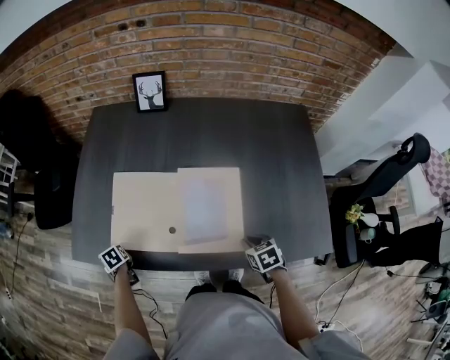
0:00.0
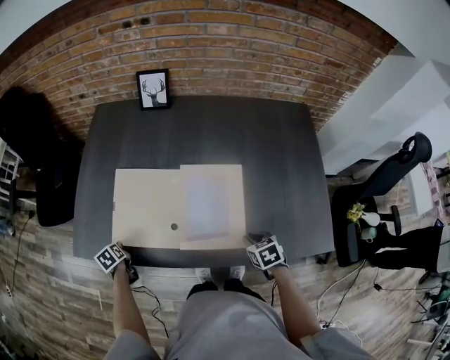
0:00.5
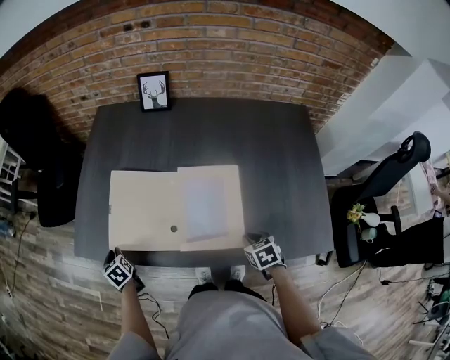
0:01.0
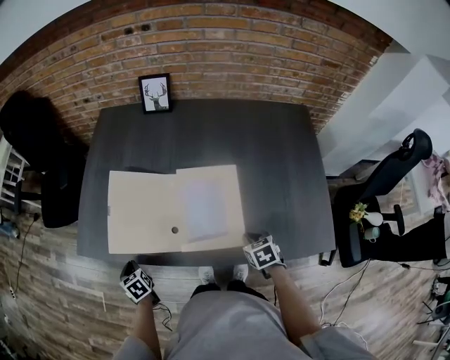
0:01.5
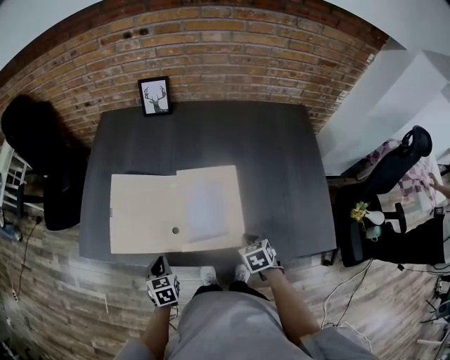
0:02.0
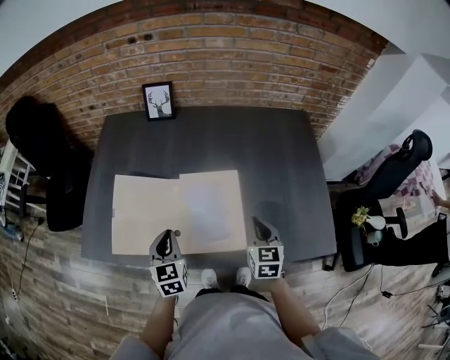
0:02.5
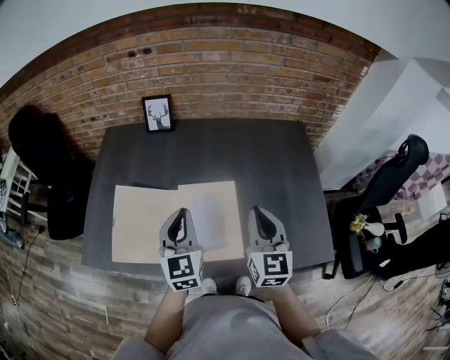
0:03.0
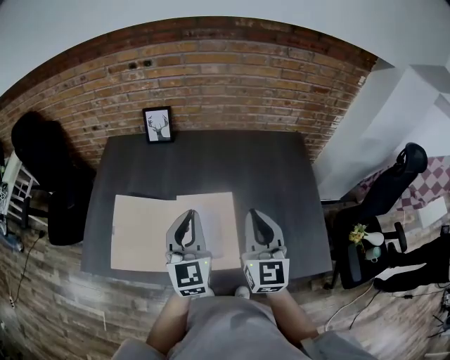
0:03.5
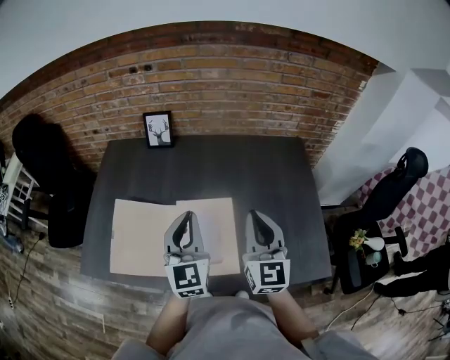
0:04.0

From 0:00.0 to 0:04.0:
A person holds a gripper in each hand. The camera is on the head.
From 0:00.0 to 0:02.0: The left gripper is displaced to the right, backward and upward by approximately 20 cm, and swivels about 30 degrees.
From 0:02.0 to 0:04.0: The right gripper heads upward, covering approximately 30 cm, and tips its fingers upward by about 60 degrees. The left gripper heads upward, to the right and forward, covering about 40 cm, and tilts its fingers some 50 degrees upward.

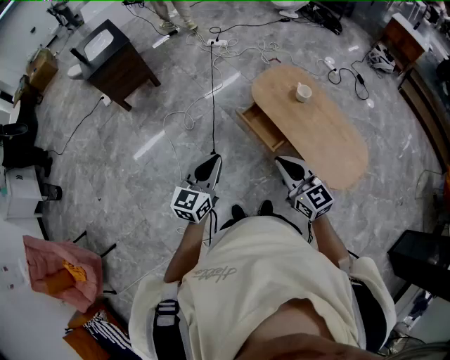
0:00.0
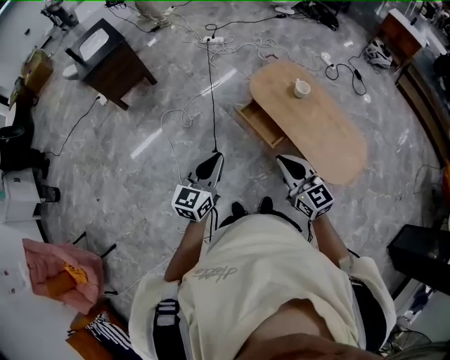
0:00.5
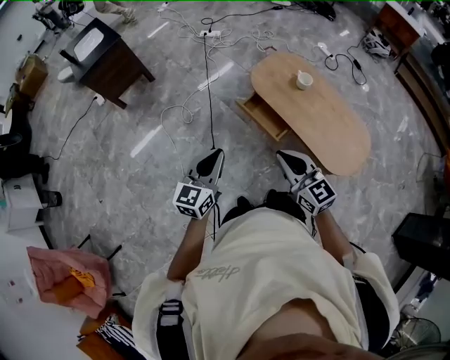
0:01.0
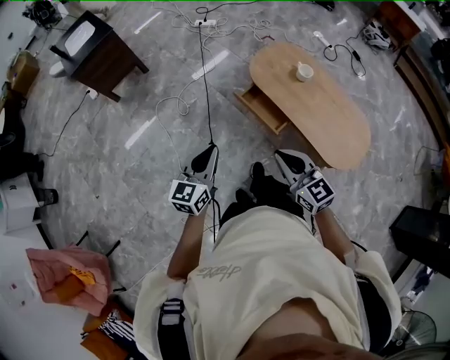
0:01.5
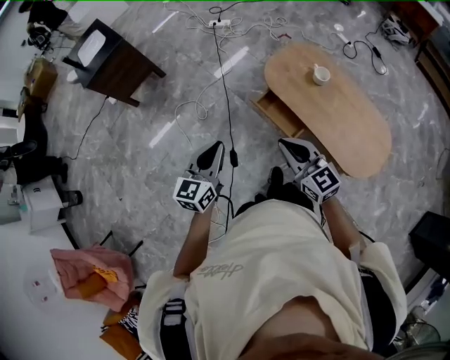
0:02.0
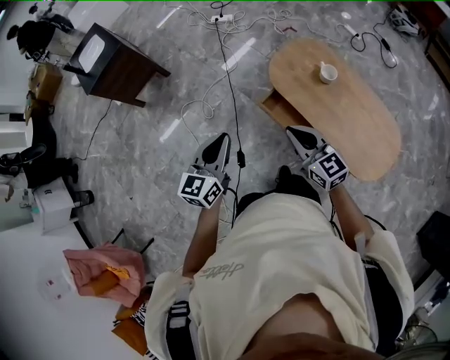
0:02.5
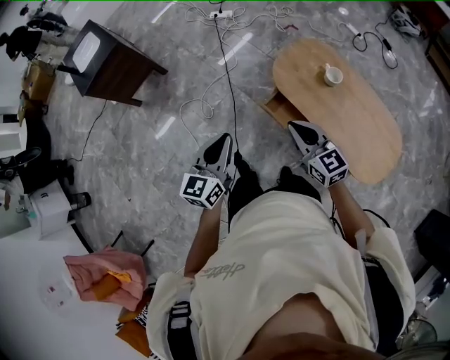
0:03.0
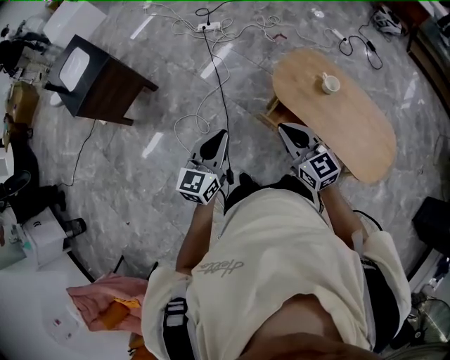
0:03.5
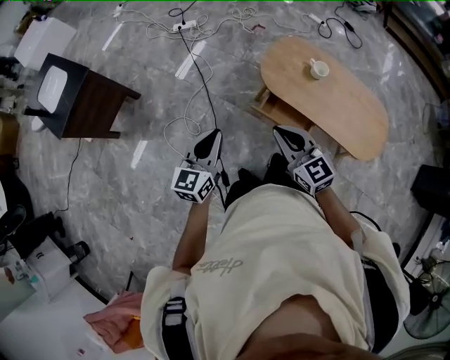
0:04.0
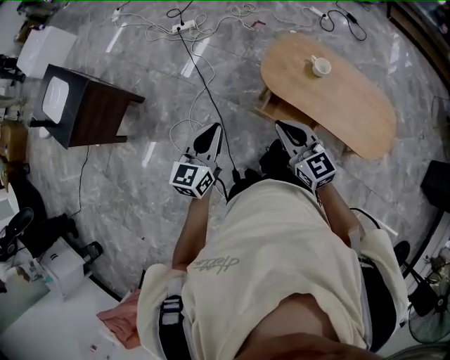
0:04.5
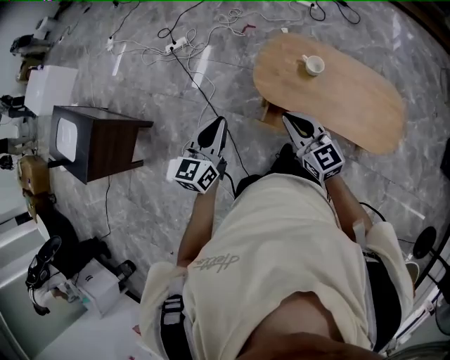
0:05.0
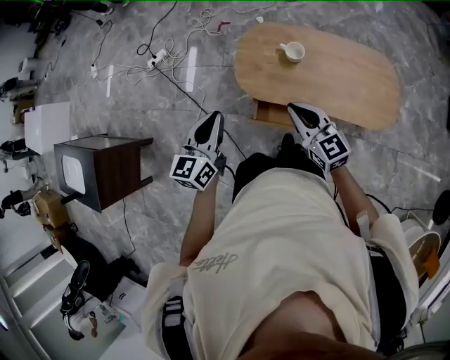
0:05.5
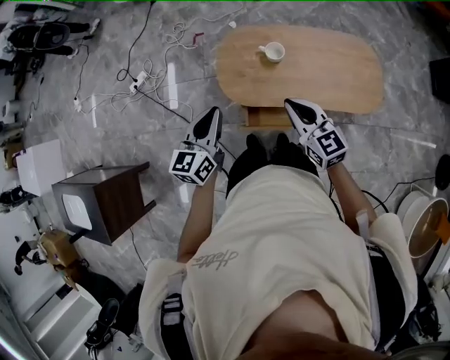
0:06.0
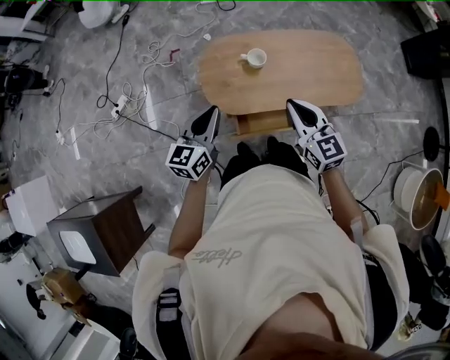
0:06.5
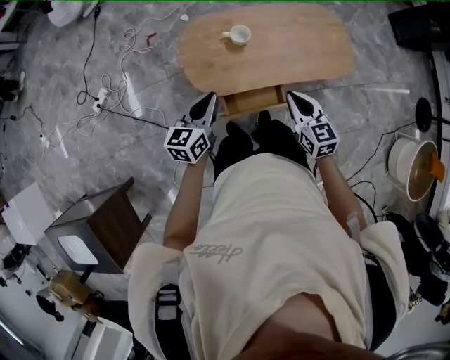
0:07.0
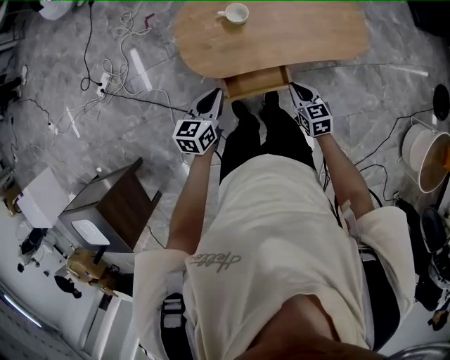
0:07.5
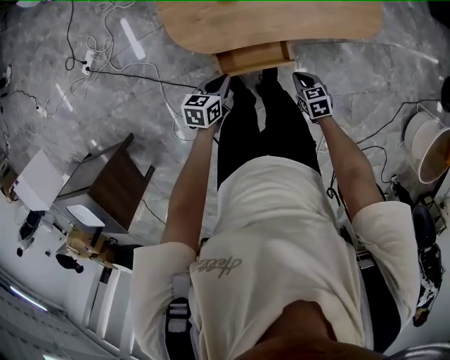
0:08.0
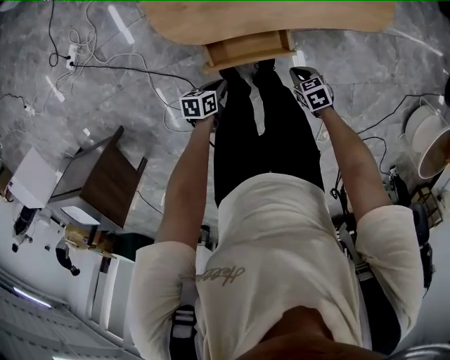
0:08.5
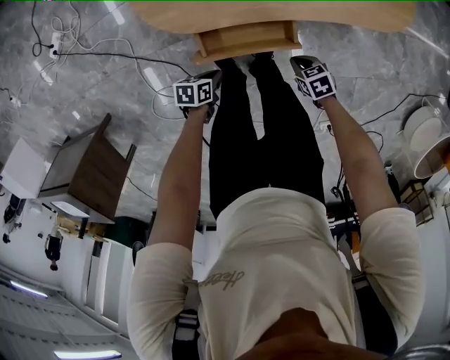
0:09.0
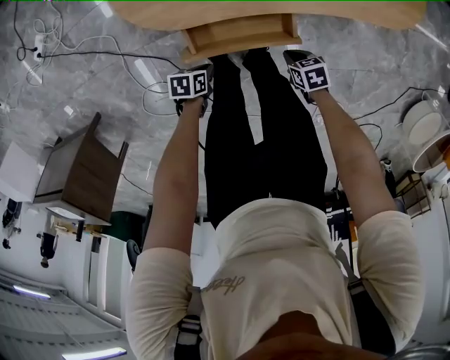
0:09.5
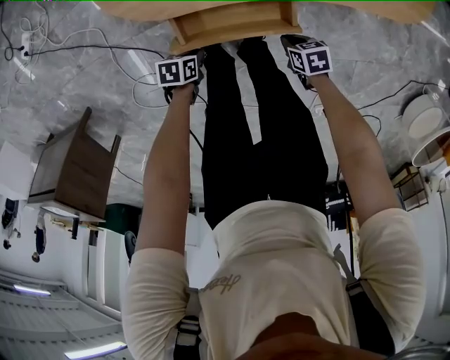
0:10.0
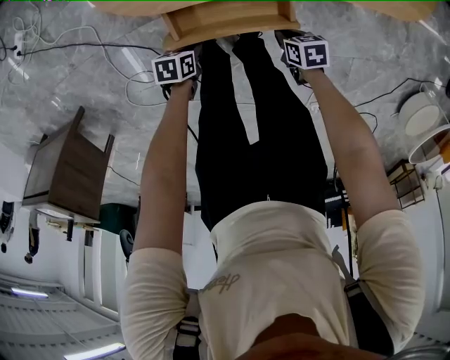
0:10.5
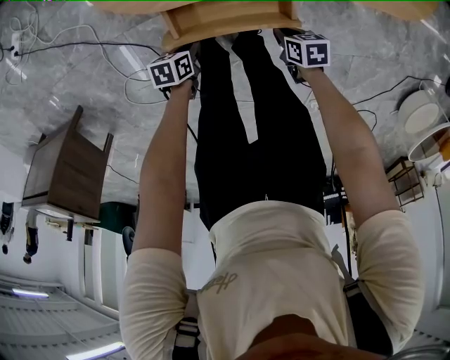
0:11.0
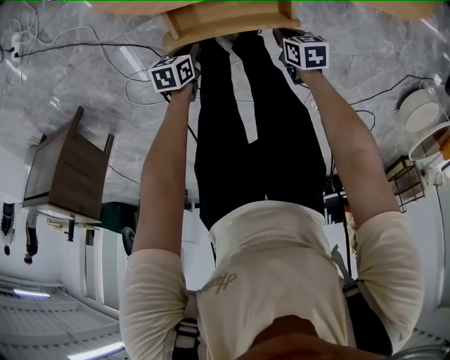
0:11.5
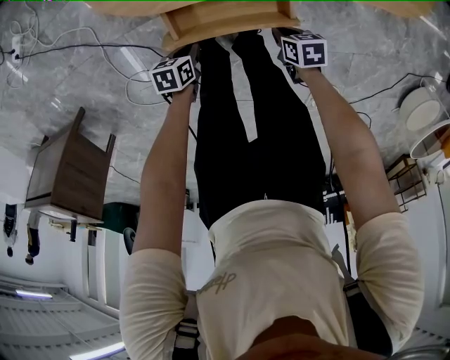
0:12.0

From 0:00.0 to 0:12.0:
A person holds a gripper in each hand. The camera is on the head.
From 0:00.0 to 0:02.0: The two grippers go about 15 cm forward.
From 0:02.0 to 0:04.0: The two grippers go roughly 30 cm forward and to the left.
From 0:04.0 to 0:06.0: The left gripper moves approximately 40 cm, and turns by roughly 30 degrees. The right gripper shifts by some 35 cm, and turns by some 30 degrees.
From 0:06.0 to 0:08.0: Both grippers travel together downward, some 40 cm. The left gripper angles its fingers downward, by approximately 30 degrees, while the right gripper tilts its fingers approximately 40 degrees downward.
From 0:08.0 to 0:10.0: The grippers both shift downward by roughly 35 cm. The left gripper rotates approximately 30 degrees. Meanwhile the right gripper changes its angle by roughly 20 degrees.
From 0:10.0 to 0:12.0: The grippers make only small movements.

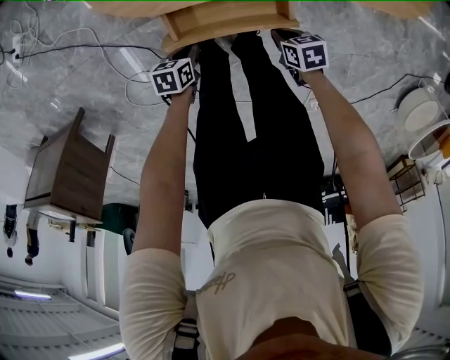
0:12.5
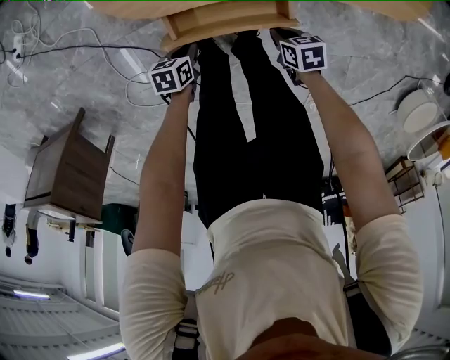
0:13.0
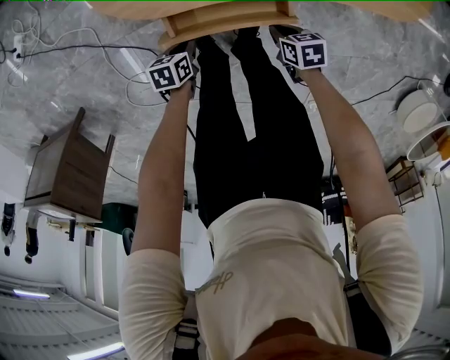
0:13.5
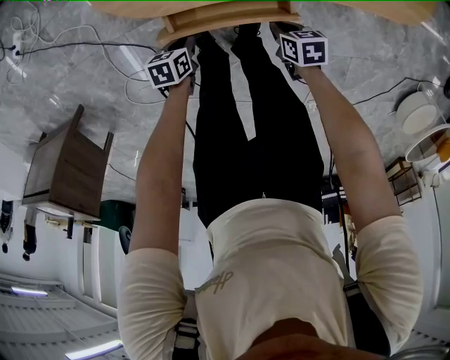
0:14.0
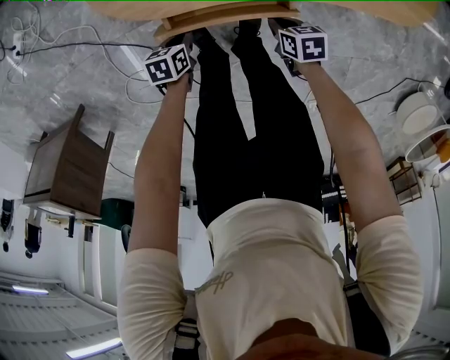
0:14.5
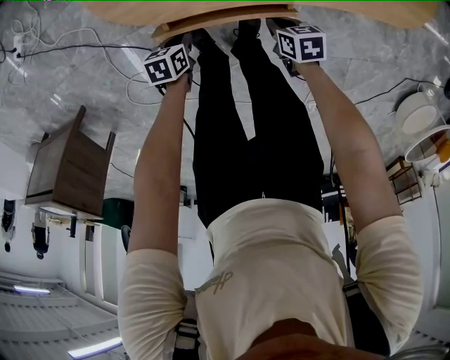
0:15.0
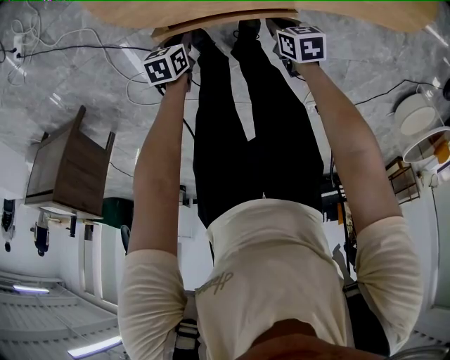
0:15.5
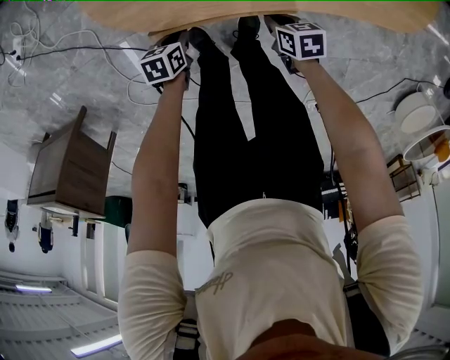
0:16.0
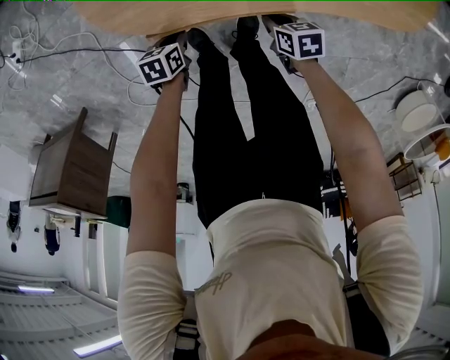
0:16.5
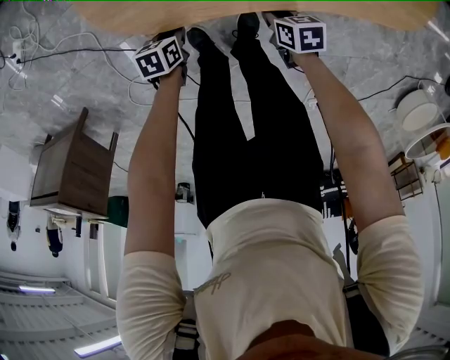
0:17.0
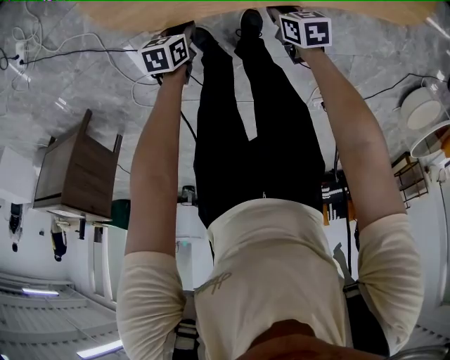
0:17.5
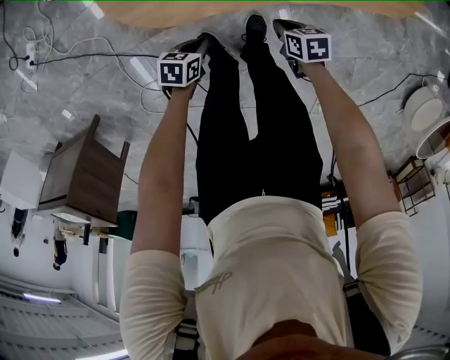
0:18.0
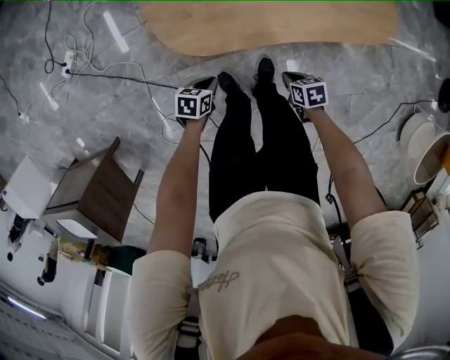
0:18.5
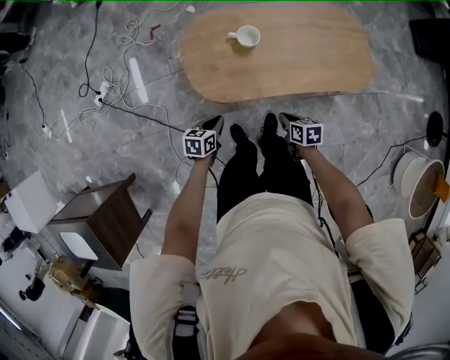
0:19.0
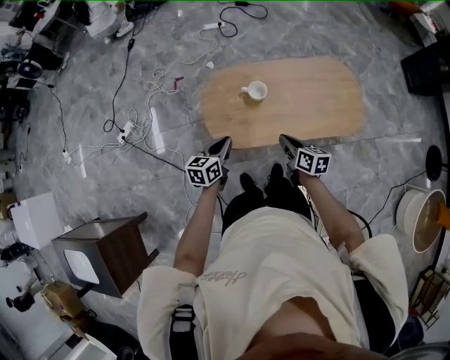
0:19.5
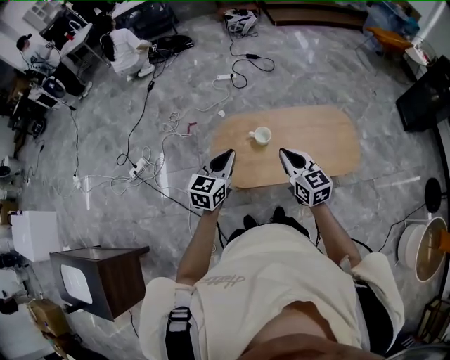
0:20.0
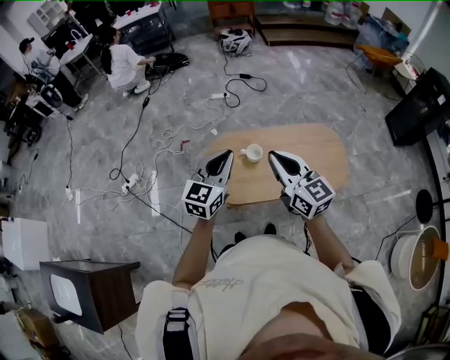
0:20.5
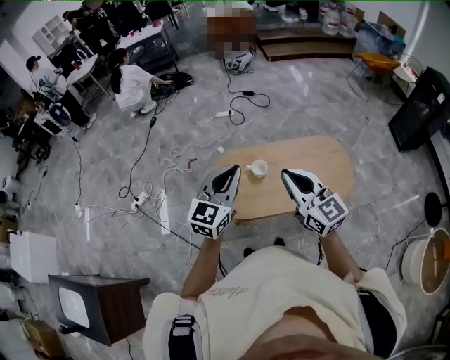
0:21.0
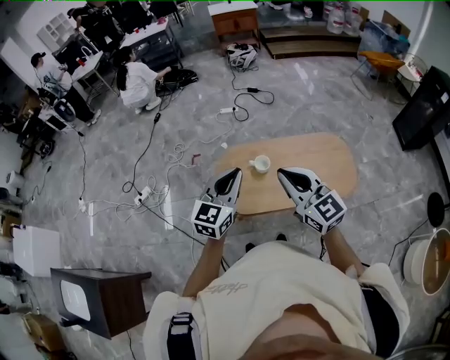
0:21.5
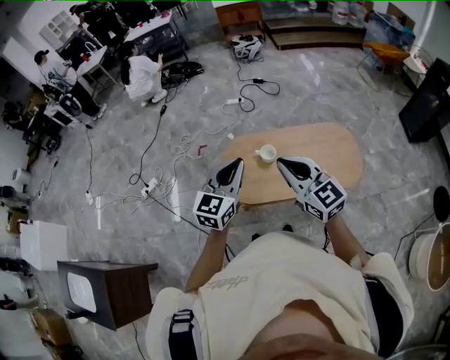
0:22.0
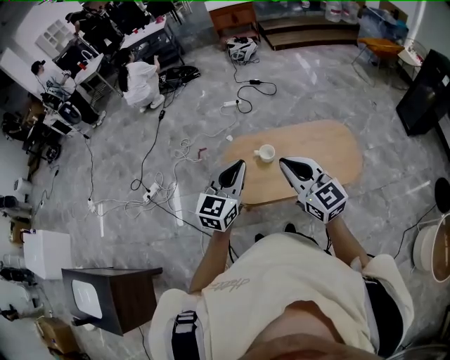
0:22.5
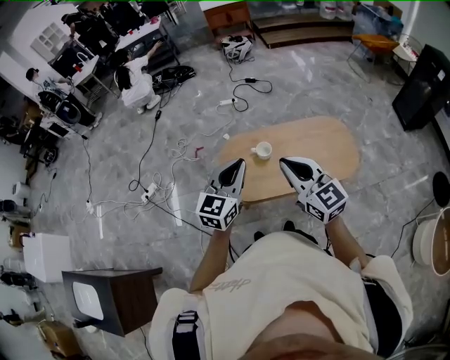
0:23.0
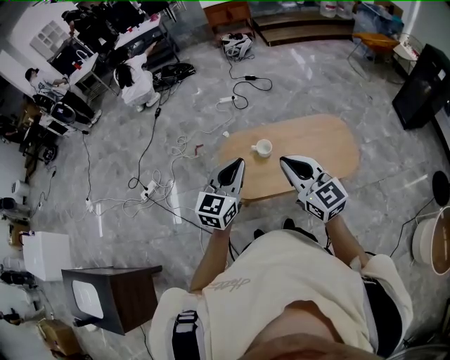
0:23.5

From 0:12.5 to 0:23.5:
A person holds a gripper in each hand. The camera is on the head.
From 0:12.5 to 0:14.5: The right gripper shifts by approximately 5 cm; the left gripper shifts by some 5 cm.
From 0:14.5 to 0:16.0: The grippers stay close to where they were, moving slightly.
From 0:16.0 to 0:18.0: The left gripper changes place by roughly 5 cm, and changes its angle by some 20 degrees. The right gripper shifts by roughly 5 cm.
From 0:18.0 to 0:20.0: The grippers both shift upward by approximately 70 cm. The right gripper points its fingers approximately 50 degrees further upward; the left gripper tips its fingers upward by approximately 40 degrees.
From 0:20.0 to 0:21.5: The two grippers go roughly 15 cm upward and backward. The right gripper swivels about 20 degrees.
From 0:21.5 to 0:23.5: There are only small adjustments of the grippers.
